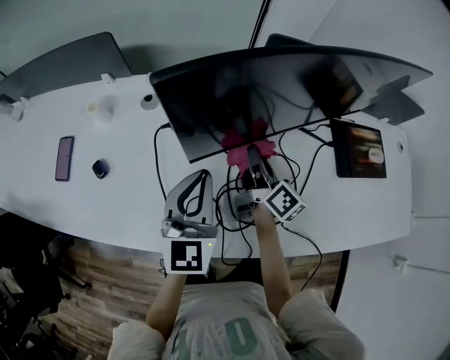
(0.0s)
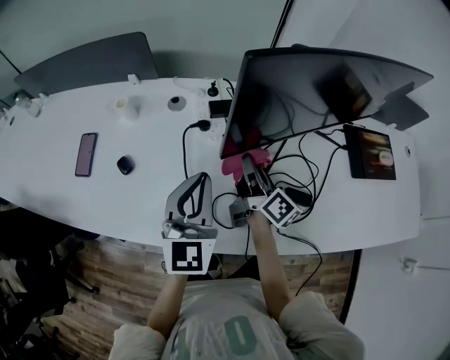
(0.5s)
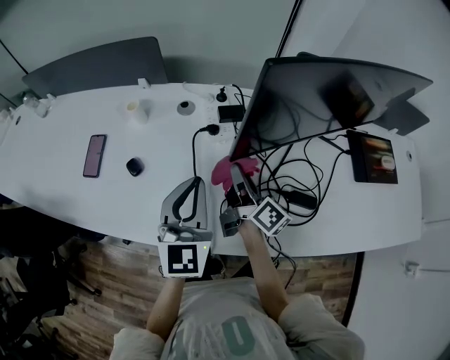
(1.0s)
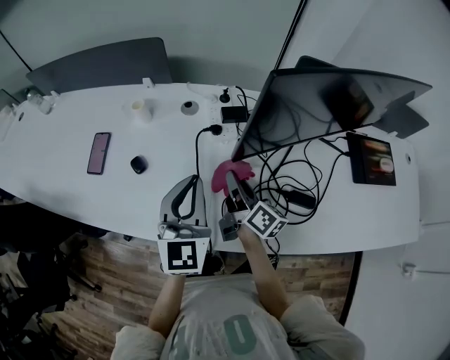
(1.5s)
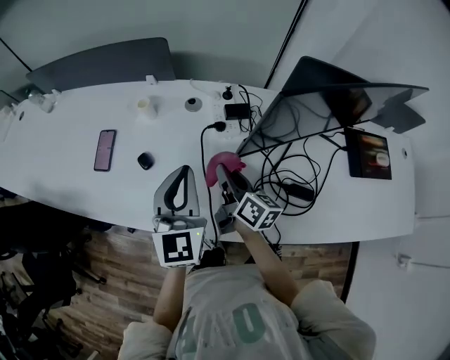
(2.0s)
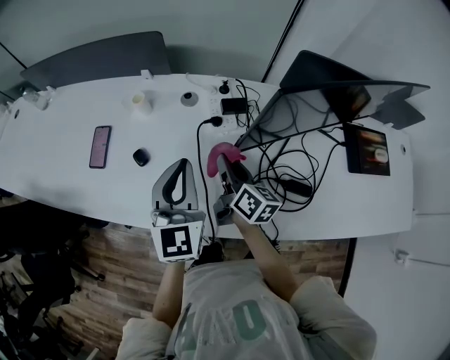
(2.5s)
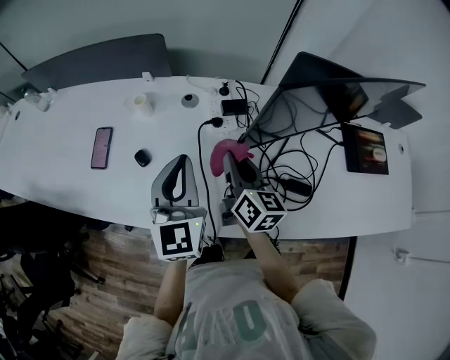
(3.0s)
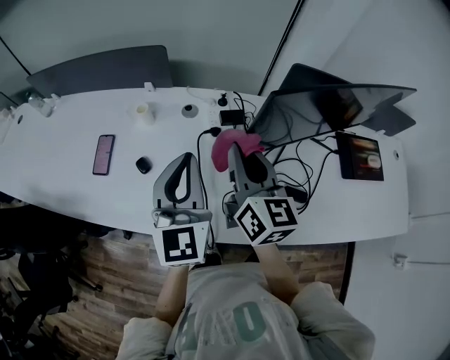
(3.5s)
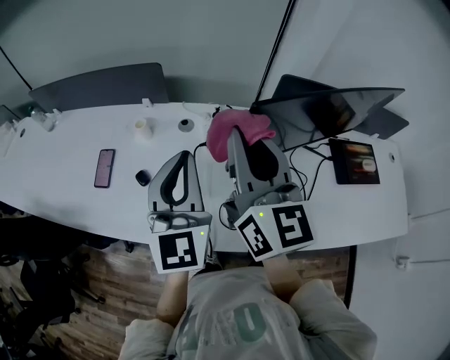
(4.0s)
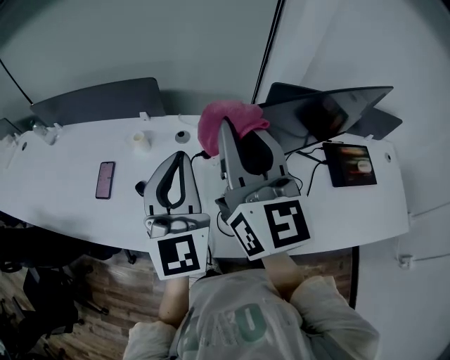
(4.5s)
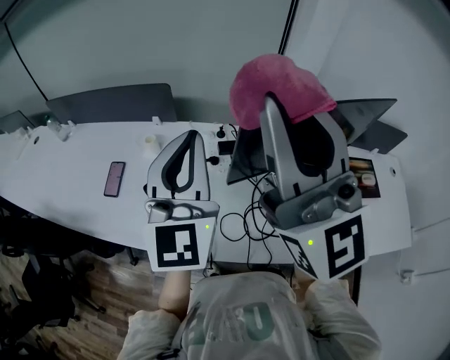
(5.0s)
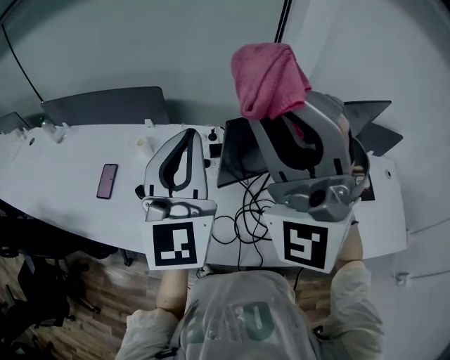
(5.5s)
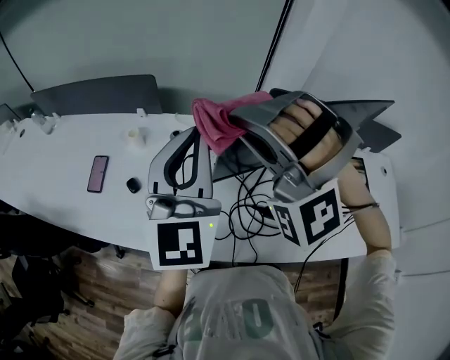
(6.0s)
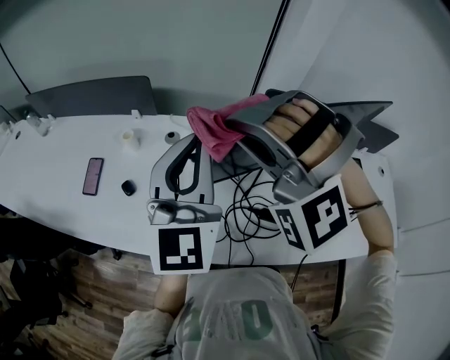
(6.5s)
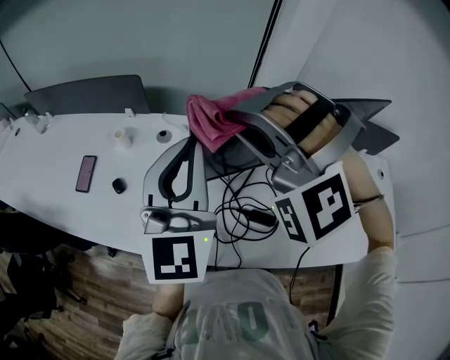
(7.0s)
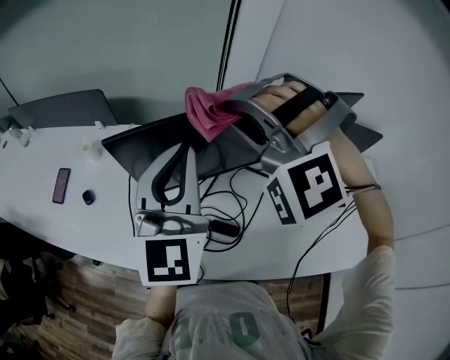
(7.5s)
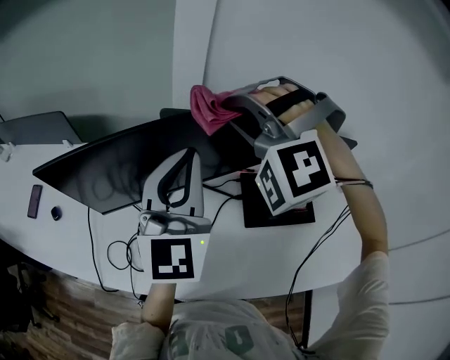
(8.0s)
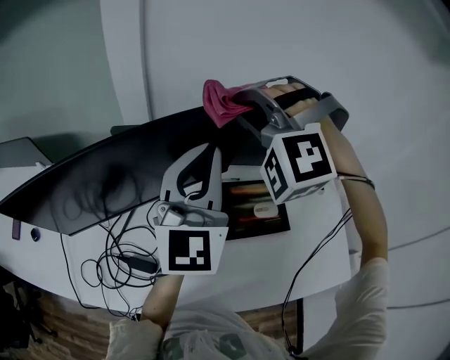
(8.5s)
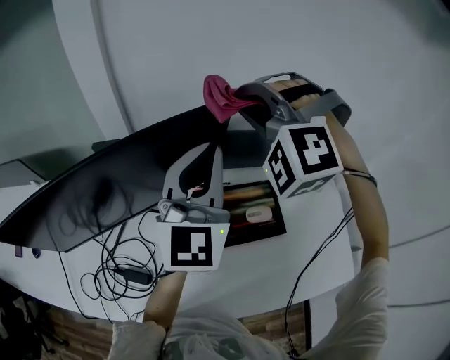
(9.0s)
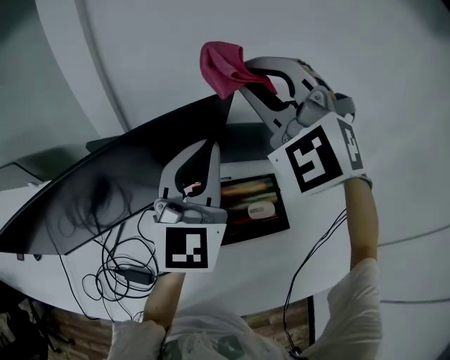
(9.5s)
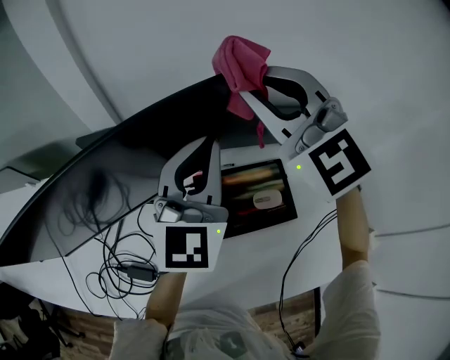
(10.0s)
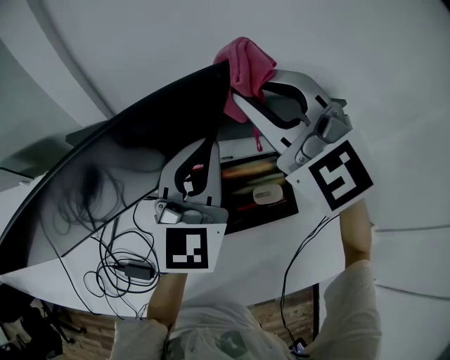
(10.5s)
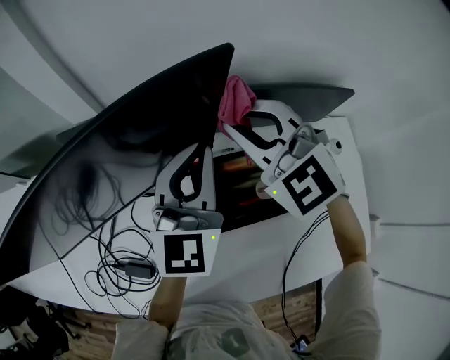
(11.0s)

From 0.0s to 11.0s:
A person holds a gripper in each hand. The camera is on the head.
From 0.0s to 2.0s: Both grippers move to the left, about 20 cm.
From 2.0s to 3.5s: The right gripper is displaced upward by some 20 cm, and rotates some 30 degrees. Meanwhile the left gripper shifts some 5 cm upward.
From 3.5s to 5.5s: The right gripper travels upward by roughly 30 cm, and rolls counterclockwise, seen from behind, by about 90 degrees, while the left gripper goes some 15 cm upward.
From 5.5s to 7.5s: The left gripper goes some 20 cm to the right. The right gripper goes about 25 cm to the right, downward and forward, and tips its fingers downward by approximately 40 degrees.
From 7.5s to 9.0s: The pair of grippers is taken to the right, roughly 40 cm.
From 9.0s to 11.0s: Both grippers travel together downward, approximately 15 cm. The right gripper twists some 50 degrees clockwise, seen from behind.

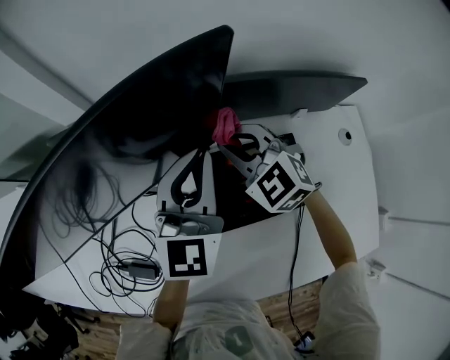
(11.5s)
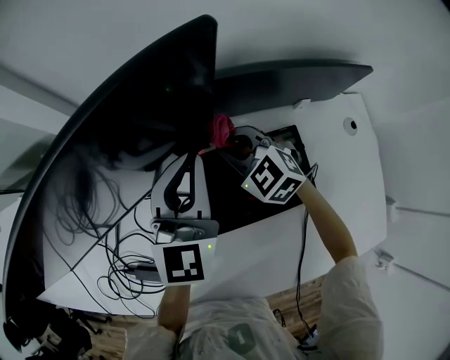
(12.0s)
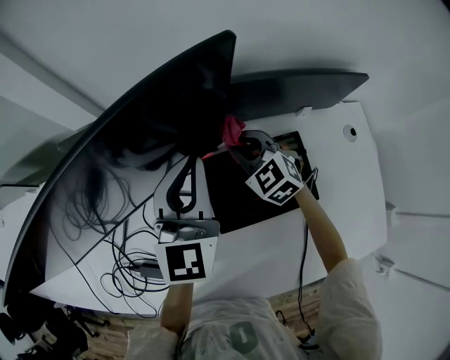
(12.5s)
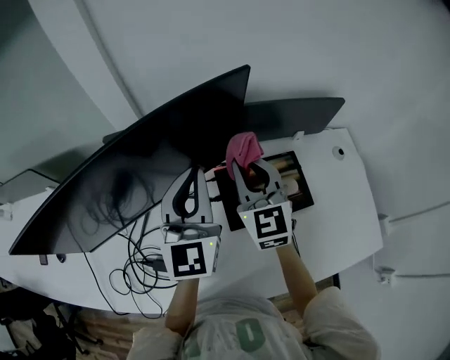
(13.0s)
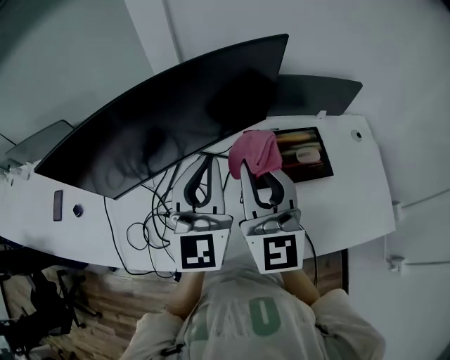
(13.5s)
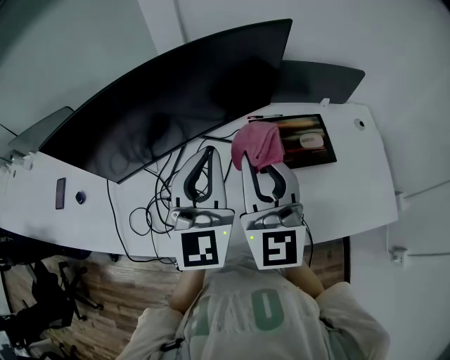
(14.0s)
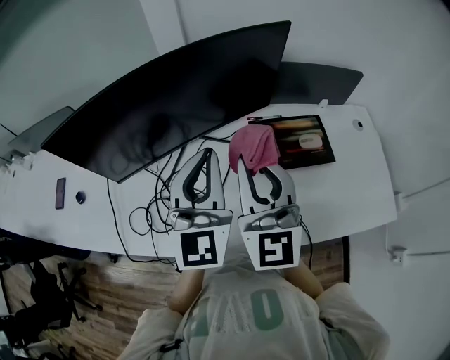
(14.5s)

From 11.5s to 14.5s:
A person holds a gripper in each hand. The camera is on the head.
From 11.5s to 13.0s: The right gripper shifts some 15 cm upward and backward, and swivels about 40 degrees. Meanwhile the left gripper is displaced to the left, upward and backward by some 15 cm.
From 13.0s to 14.5s: The left gripper goes about 20 cm backward and to the left; the right gripper moves backward, to the left and upward, roughly 25 cm.

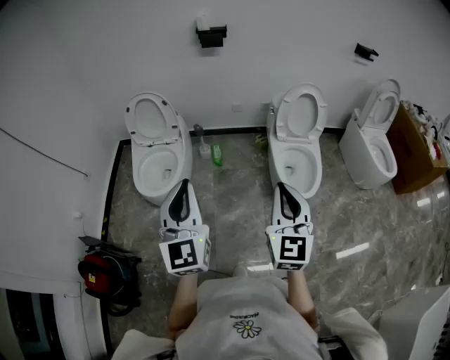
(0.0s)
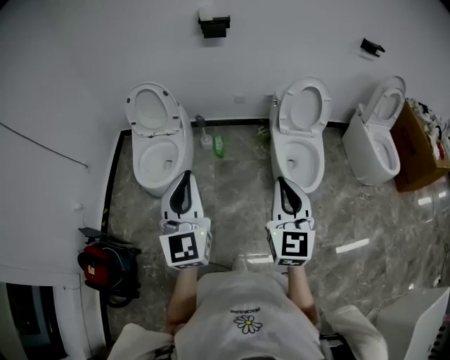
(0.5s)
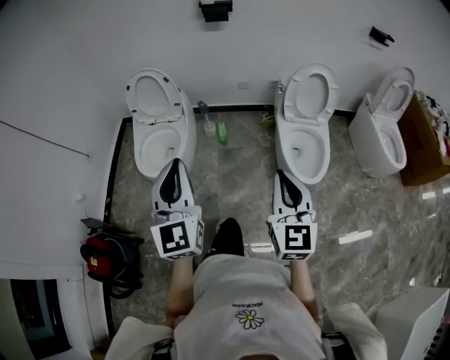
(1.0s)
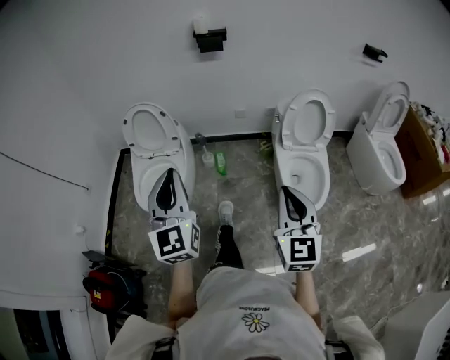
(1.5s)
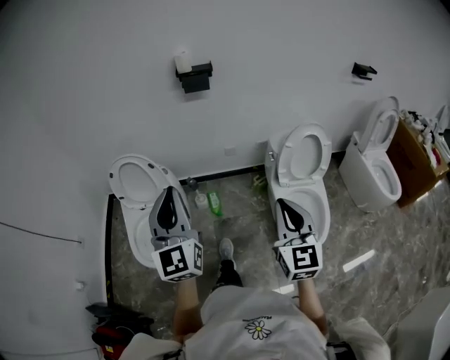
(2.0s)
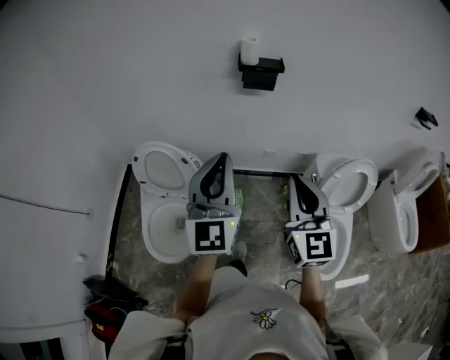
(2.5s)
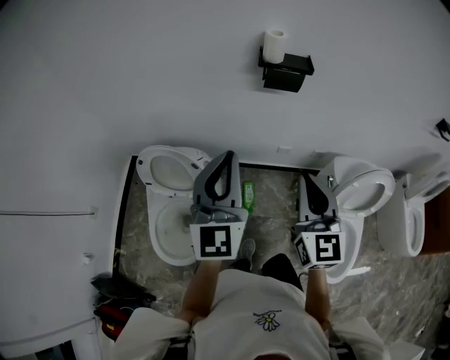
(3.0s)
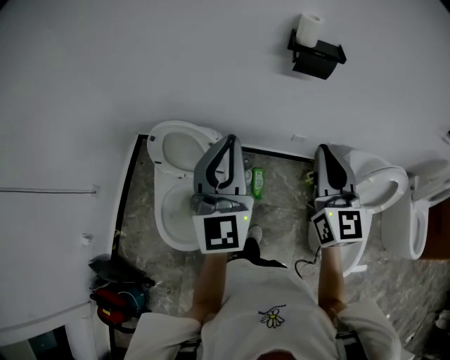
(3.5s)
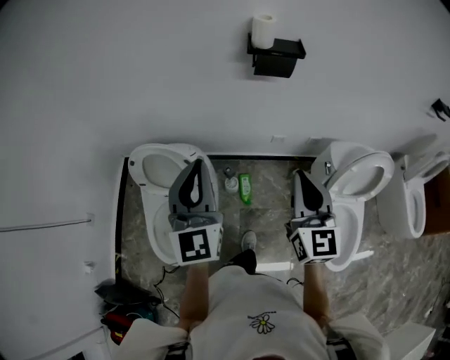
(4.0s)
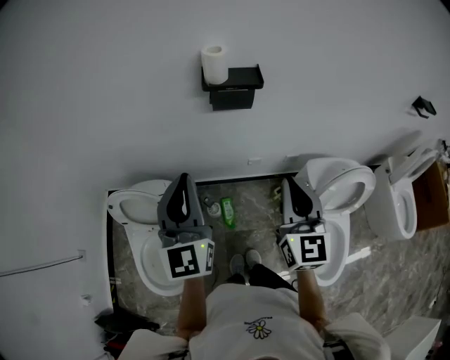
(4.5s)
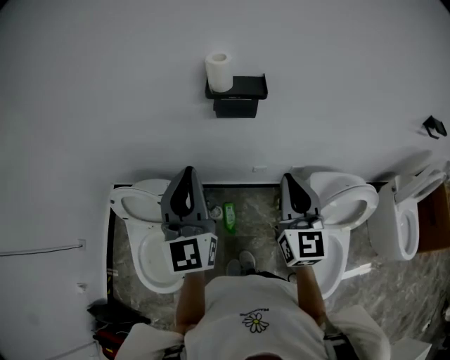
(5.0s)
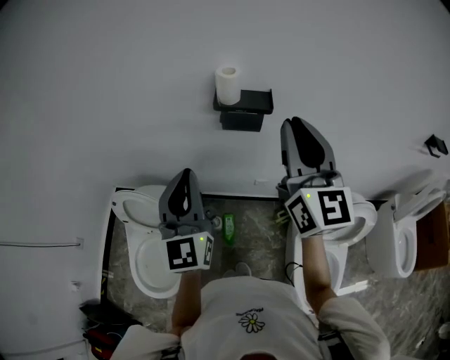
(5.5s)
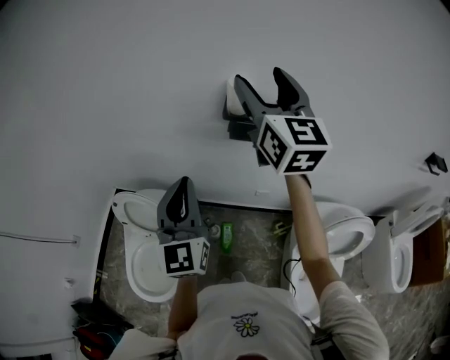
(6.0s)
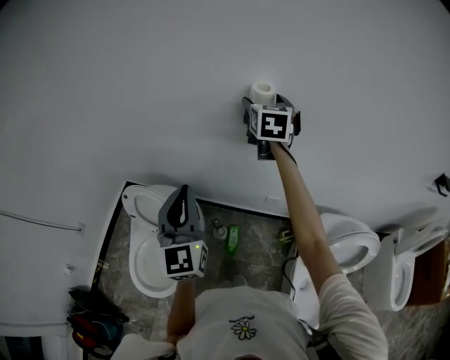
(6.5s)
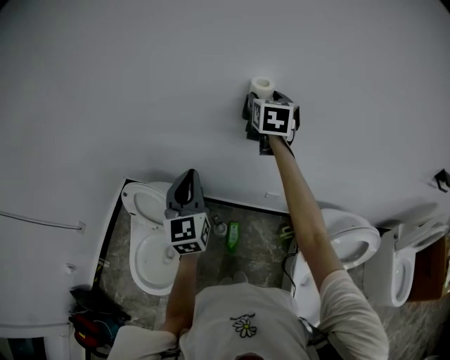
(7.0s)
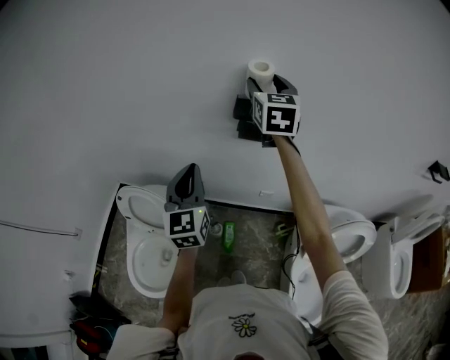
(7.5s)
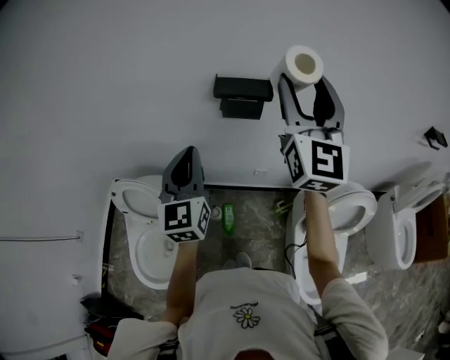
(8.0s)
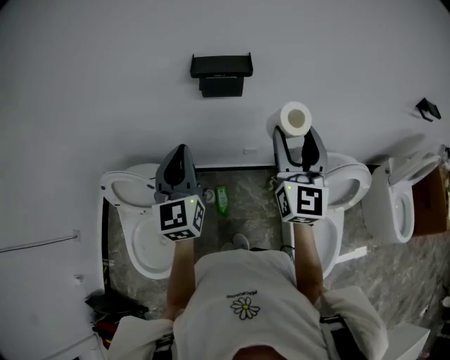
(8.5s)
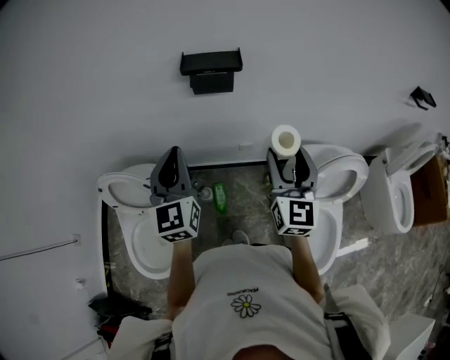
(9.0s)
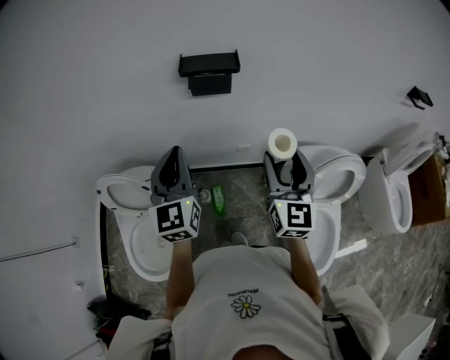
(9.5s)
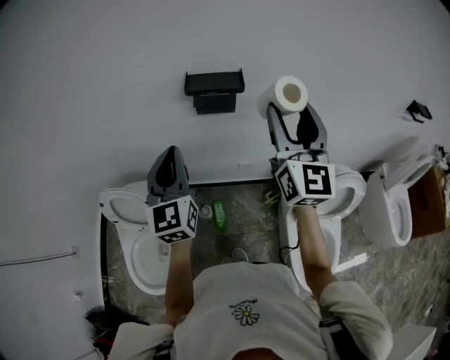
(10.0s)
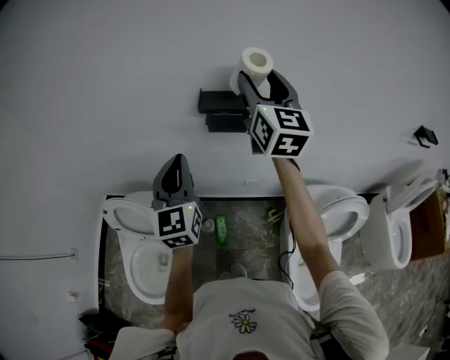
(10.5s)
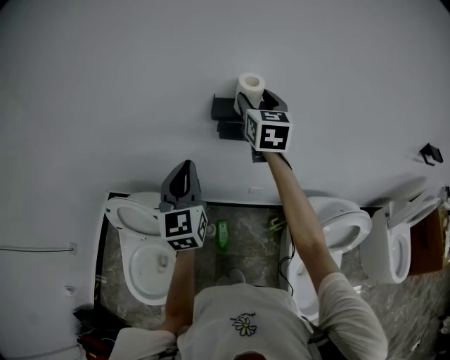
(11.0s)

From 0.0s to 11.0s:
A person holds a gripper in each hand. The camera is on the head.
From 0.0s to 2.0s: The two grippers go some 30 cm forward.
From 2.0s to 3.5s: The left gripper is displaced forward by roughly 30 cm; the right gripper goes roughly 40 cm forward and to the left.
From 3.5s to 5.5s: The left gripper goes roughly 15 cm to the right and forward. The right gripper goes roughly 25 cm upward, forward and to the right.
From 5.5s to 7.5s: The right gripper travels forward by about 20 cm, changes its angle by some 20 degrees, and opens. The left gripper shifts some 10 cm downward and forward.
From 7.5s to 9.0s: The right gripper is displaced backward, downward and to the right by roughly 35 cm; the left gripper heads to the right, covering about 5 cm.
From 9.0s to 11.0s: The left gripper moves forward, approximately 10 cm. Meanwhile the right gripper shifts about 30 cm forward, upward and to the left.

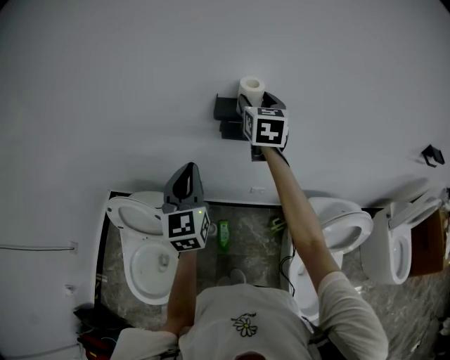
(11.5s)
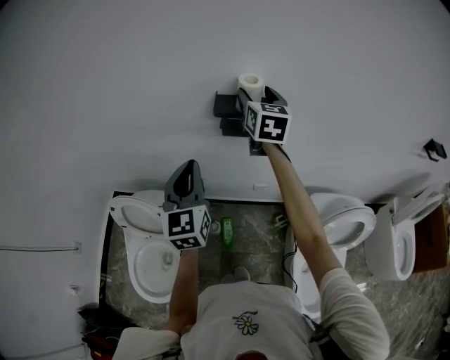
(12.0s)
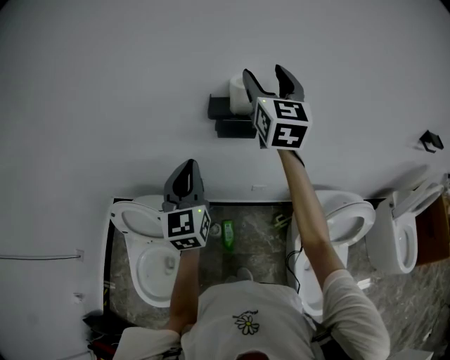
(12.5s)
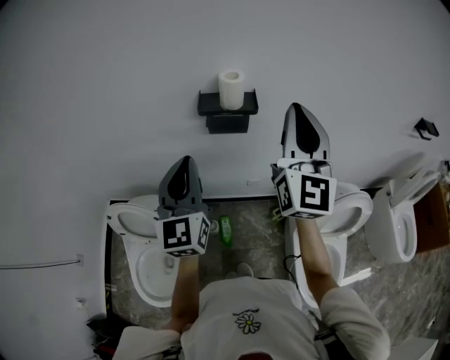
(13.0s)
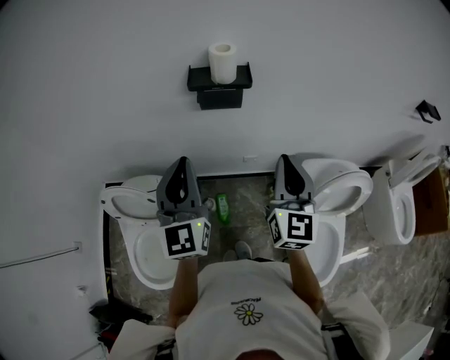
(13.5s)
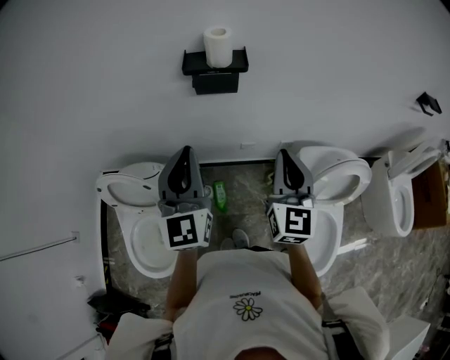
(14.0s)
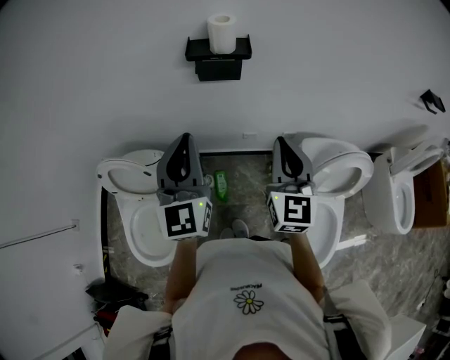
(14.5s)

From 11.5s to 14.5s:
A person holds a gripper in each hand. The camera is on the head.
From 11.5s to 13.0s: The left gripper travels upward by about 5 cm, while the right gripper travels backward, upward and to the right by approximately 25 cm, tips its fingers upward by roughly 30 degrees, and closes up.
From 13.0s to 14.5s: The left gripper is displaced backward by some 5 cm. Meanwhile the right gripper travels downward and backward by some 20 cm, and swivels about 20 degrees.
